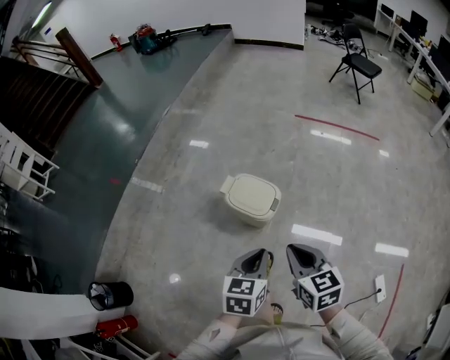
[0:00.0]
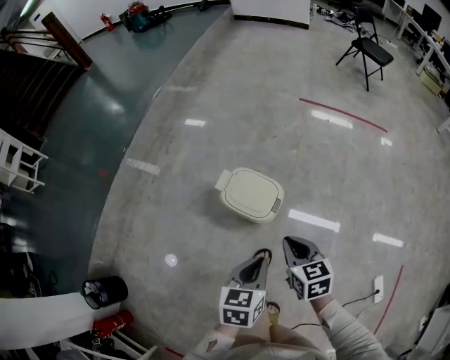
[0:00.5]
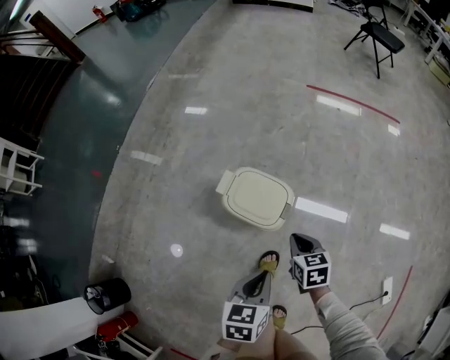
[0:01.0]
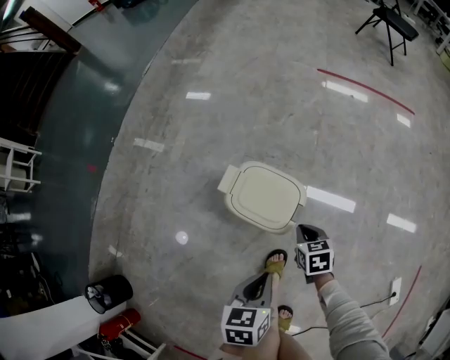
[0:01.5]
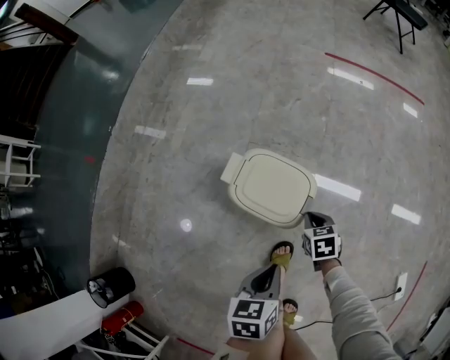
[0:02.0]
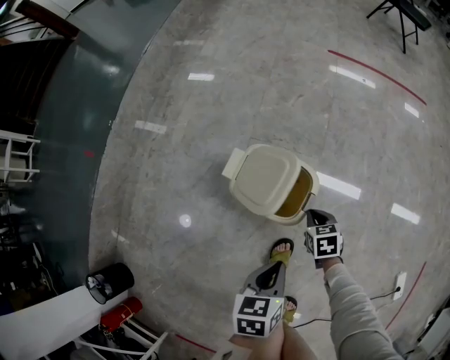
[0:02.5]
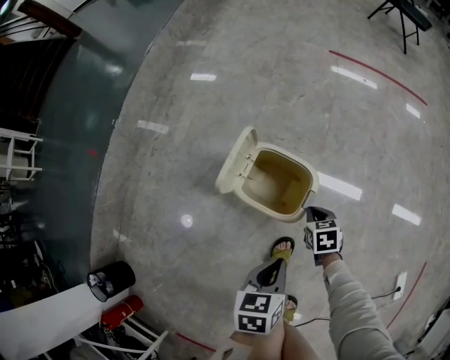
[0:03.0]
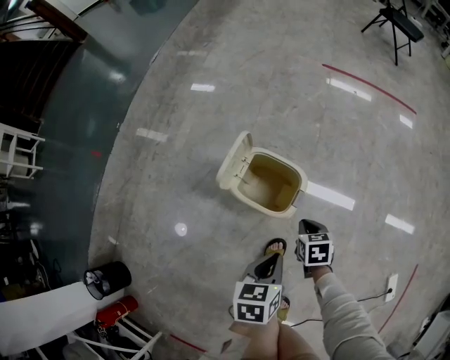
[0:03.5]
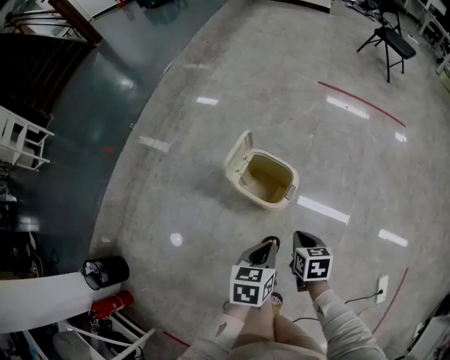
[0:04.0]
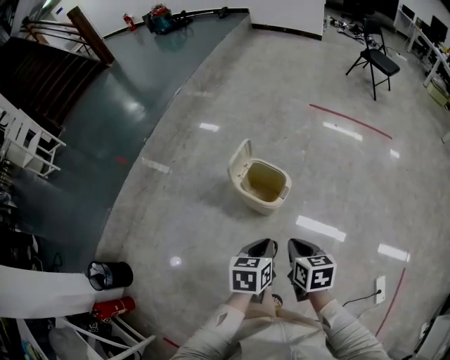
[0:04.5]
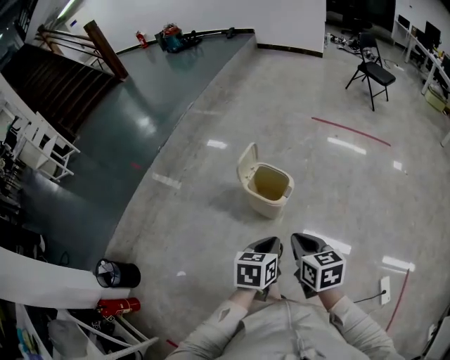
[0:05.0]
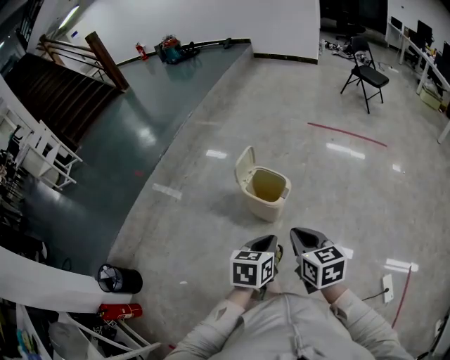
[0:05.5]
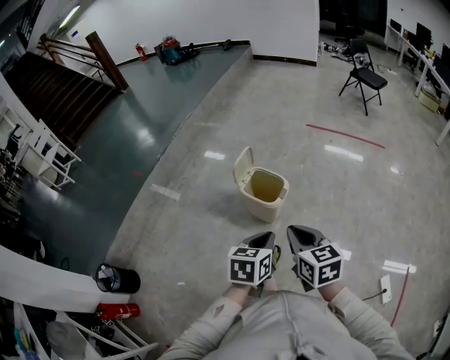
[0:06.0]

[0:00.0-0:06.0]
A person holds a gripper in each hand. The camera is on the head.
0:00.0 to 0:02.0: The left gripper moves downward and forward, approximately 25 cm, and rotates about 20 degrees. The right gripper heads downward and forward, covering about 50 cm, and tips its fingers downward by approximately 30 degrees.
0:02.0 to 0:04.0: The left gripper shifts some 10 cm upward; the right gripper travels upward and backward by some 20 cm.
0:04.0 to 0:06.0: The grippers both shift upward and backward by roughly 25 cm. The right gripper swivels about 30 degrees.

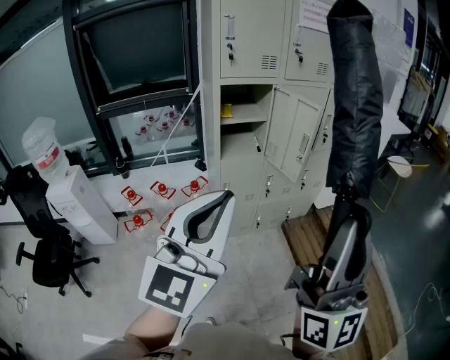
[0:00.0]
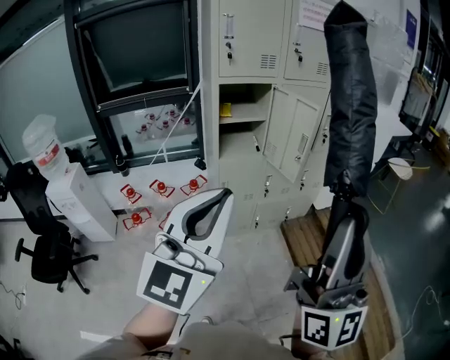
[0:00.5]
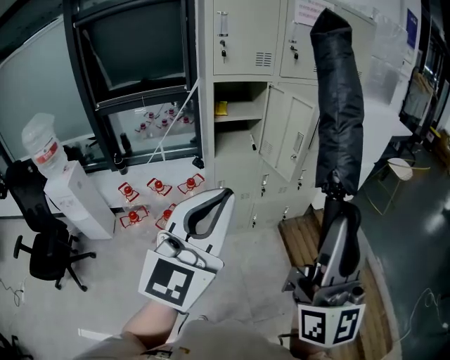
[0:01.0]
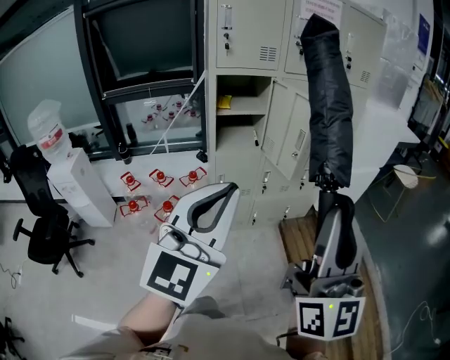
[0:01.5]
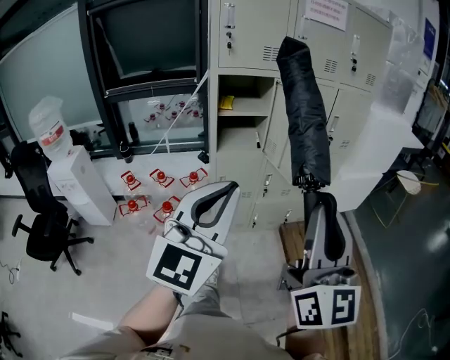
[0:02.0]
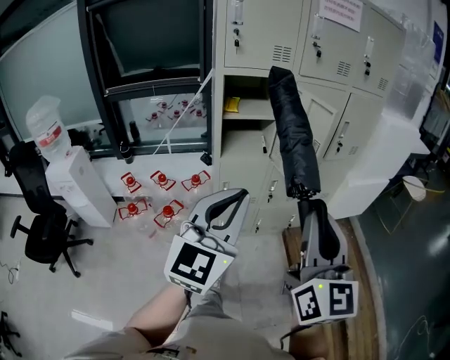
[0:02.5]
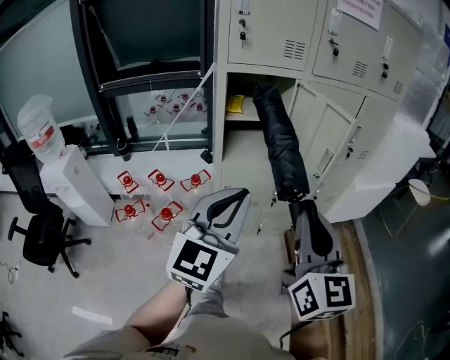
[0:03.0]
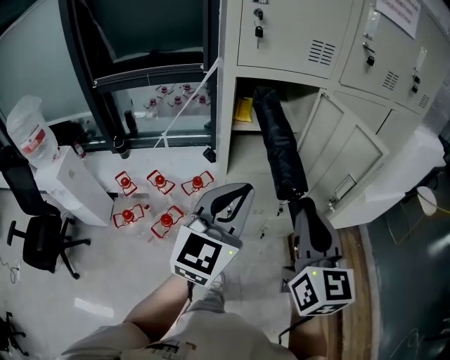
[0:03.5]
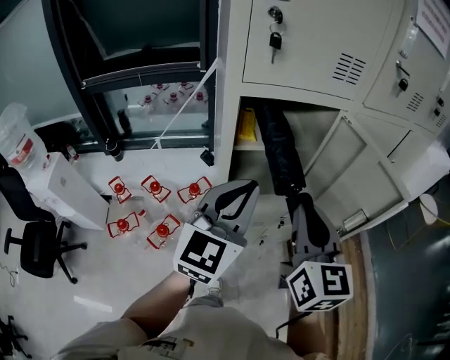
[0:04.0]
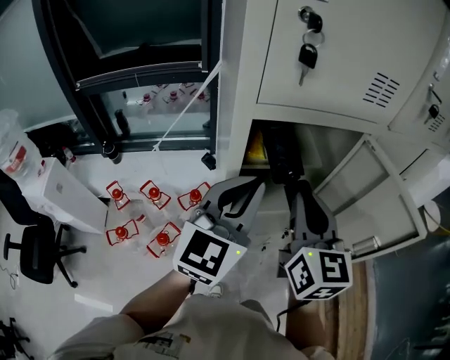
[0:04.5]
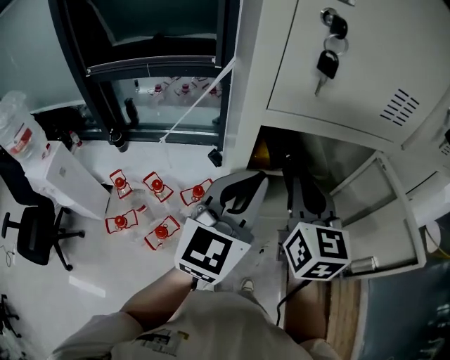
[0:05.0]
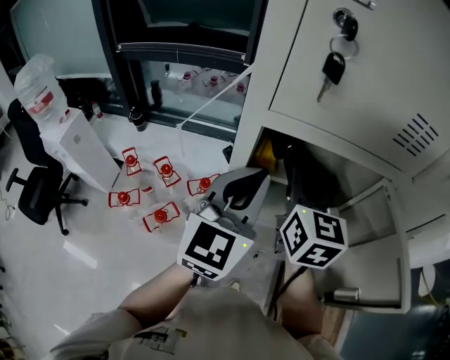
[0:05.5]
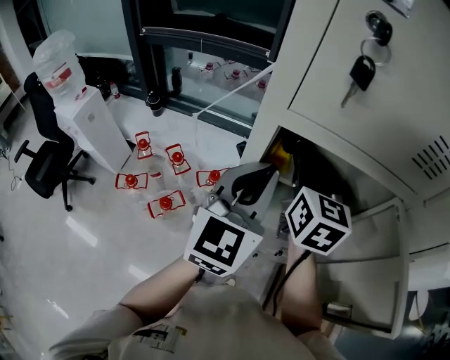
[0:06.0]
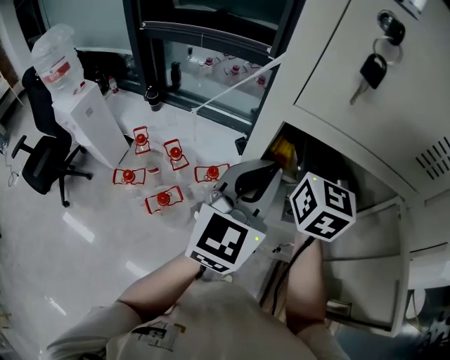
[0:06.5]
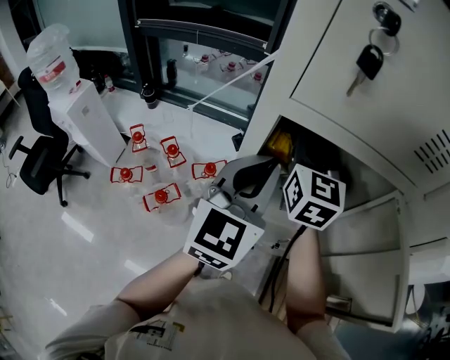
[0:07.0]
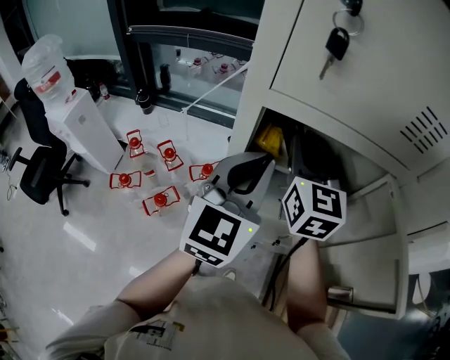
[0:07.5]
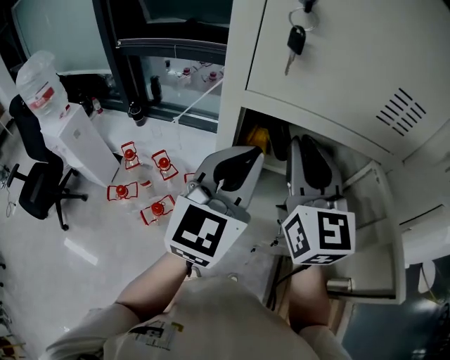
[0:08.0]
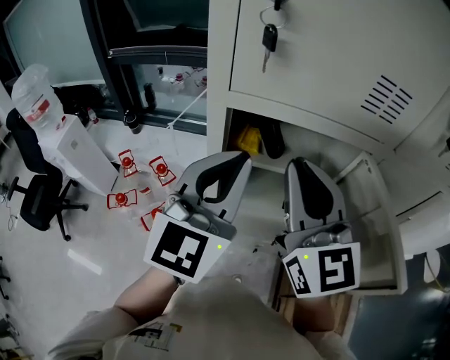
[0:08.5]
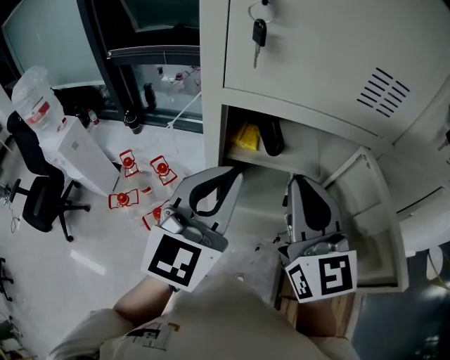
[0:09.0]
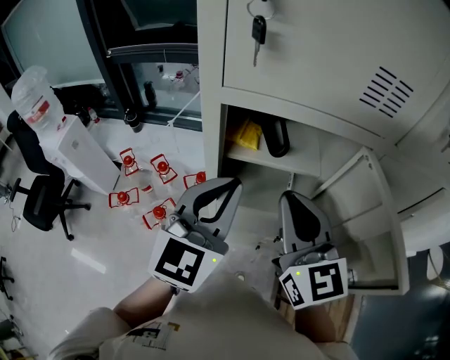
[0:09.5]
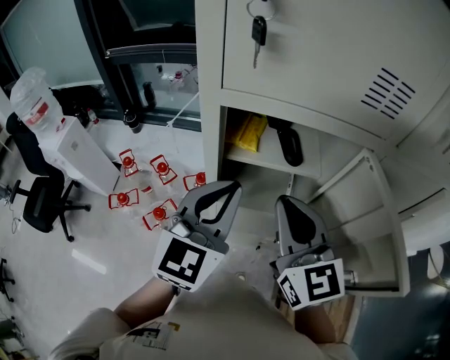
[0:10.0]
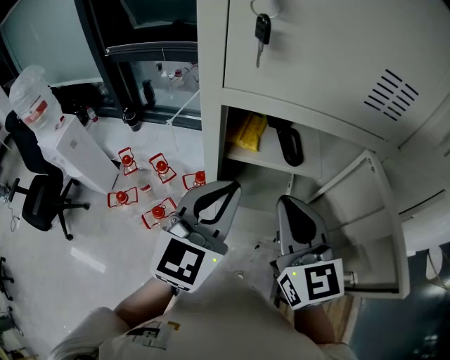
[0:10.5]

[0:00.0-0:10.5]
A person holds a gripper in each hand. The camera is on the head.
0:00.0 to 0:02.0: The right gripper shifts about 15 cm forward and downward, and turns by some 20 degrees, while the left gripper moves to the right and forward, about 10 cm.
0:02.0 to 0:04.0: The pair of grippers is taken forward, roughly 40 cm. The right gripper rotates about 30 degrees.
0:04.0 to 0:06.5: The right gripper shifts roughly 25 cm forward, while the left gripper moves forward, roughly 15 cm, and changes its angle by roughly 20 degrees.
0:06.5 to 0:08.5: The right gripper shifts roughly 15 cm backward and upward. The left gripper goes some 10 cm upward and backward.
0:08.5 to 0:10.5: The two grippers go roughly 10 cm downward.

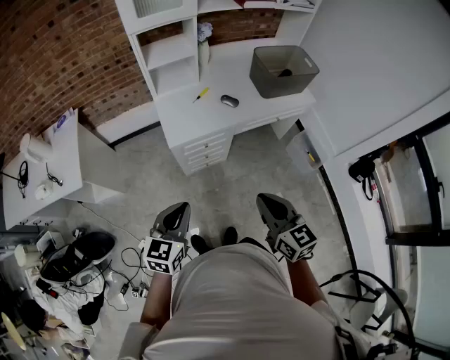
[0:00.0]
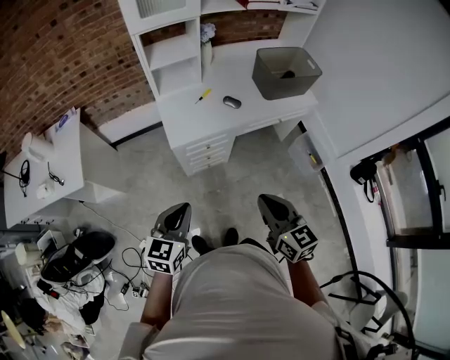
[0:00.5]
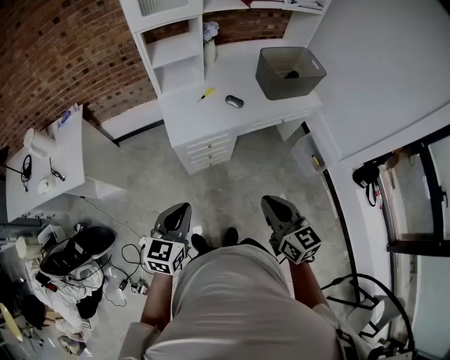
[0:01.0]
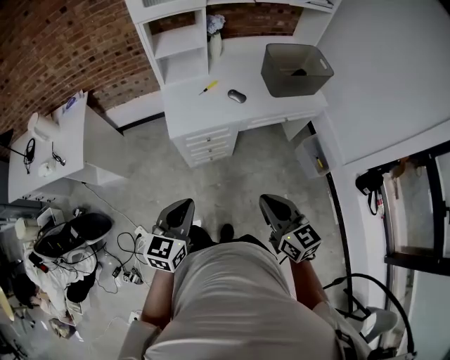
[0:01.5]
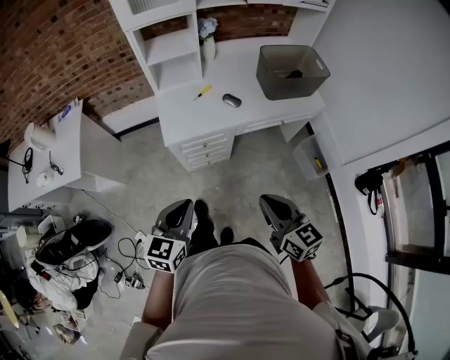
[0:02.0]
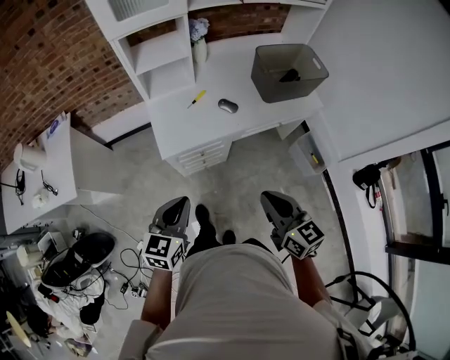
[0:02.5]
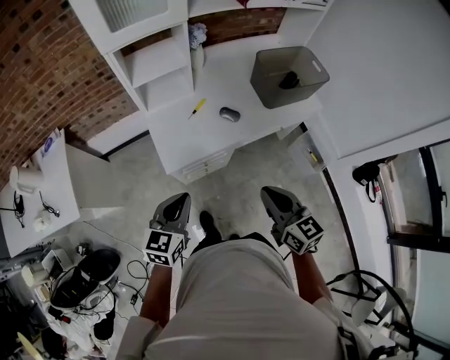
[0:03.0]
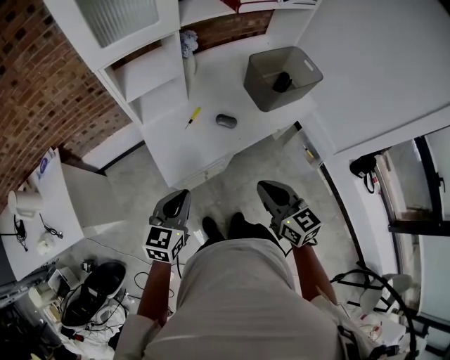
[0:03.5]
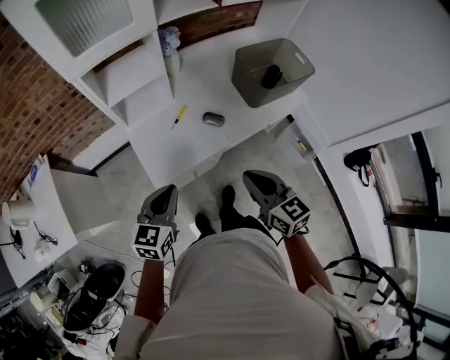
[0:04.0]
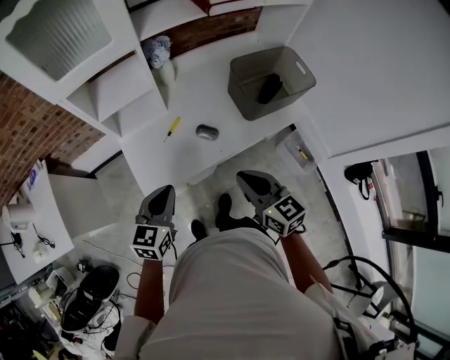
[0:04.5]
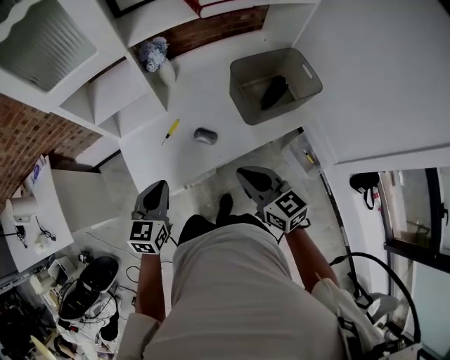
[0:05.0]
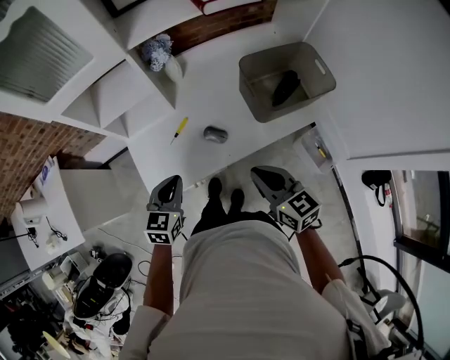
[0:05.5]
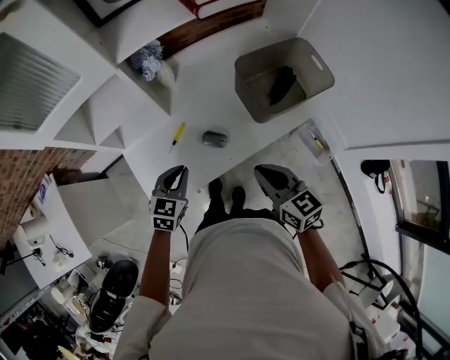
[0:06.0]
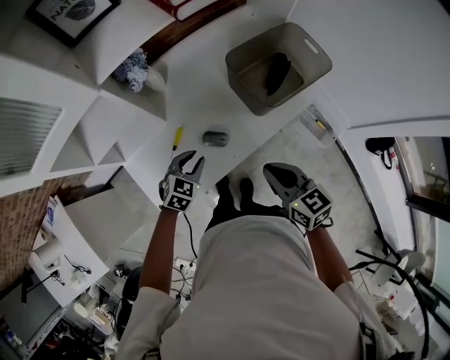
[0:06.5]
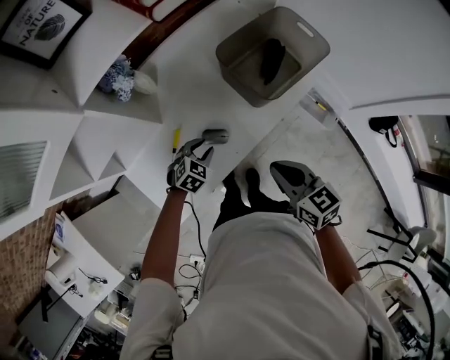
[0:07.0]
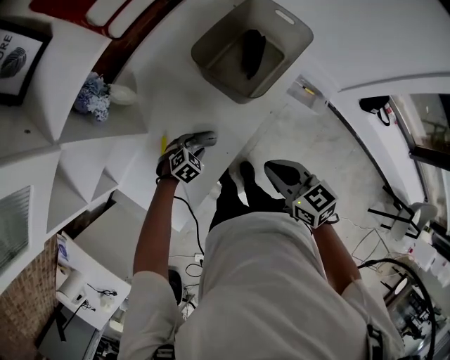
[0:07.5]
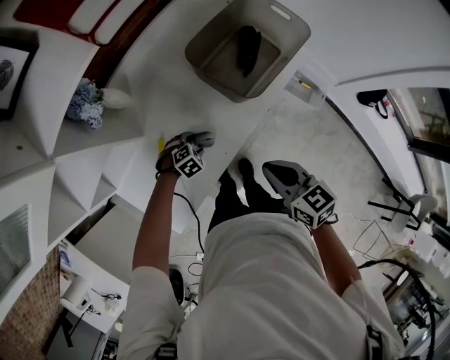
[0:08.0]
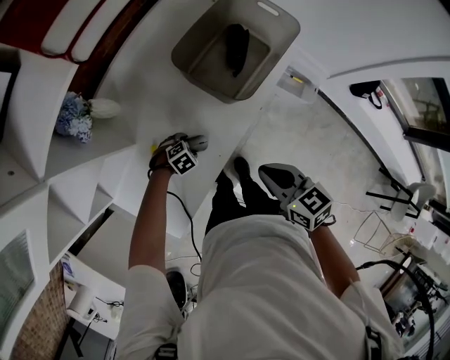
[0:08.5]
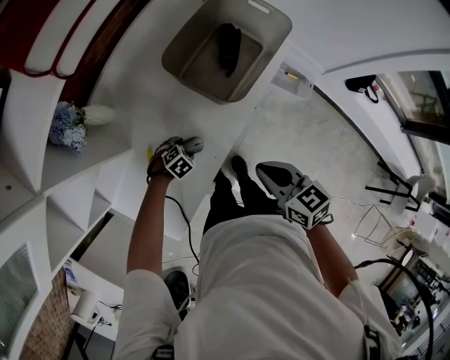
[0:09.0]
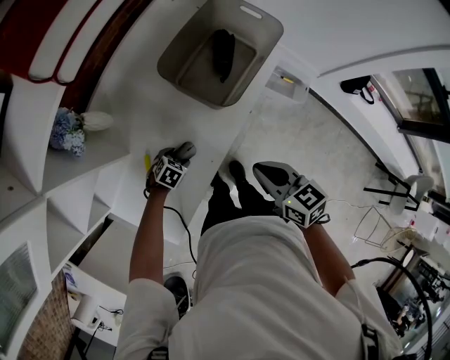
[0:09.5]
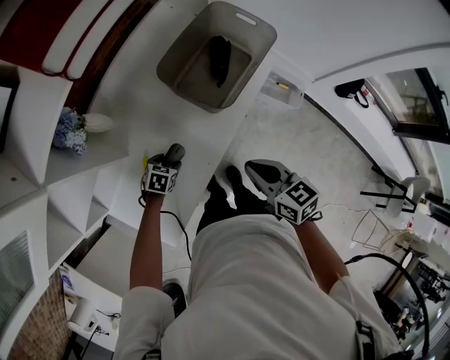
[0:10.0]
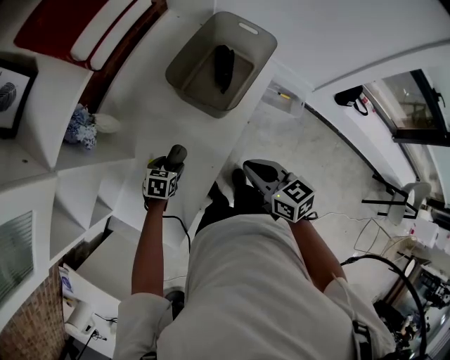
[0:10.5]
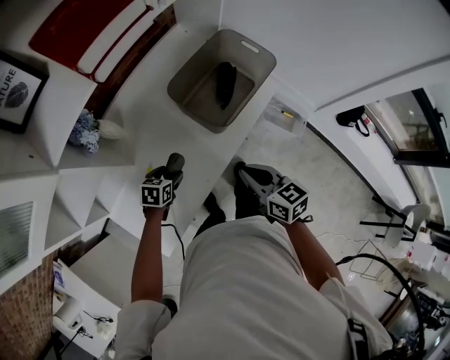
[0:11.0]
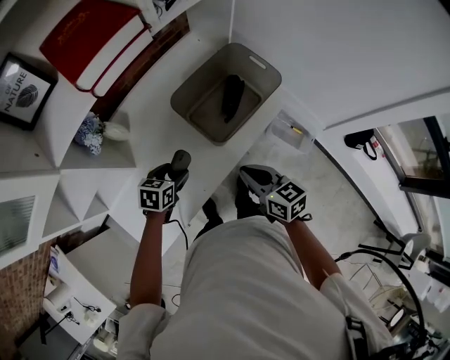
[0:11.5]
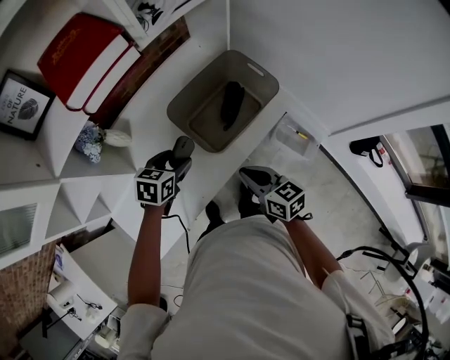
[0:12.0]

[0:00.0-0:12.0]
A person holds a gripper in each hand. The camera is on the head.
0:00.0 to 0:02.0: Both grippers travel together to the right, some 10 cm.
0:02.0 to 0:04.0: Both grippers move forward, some 25 cm.
0:04.0 to 0:06.0: The right gripper shifts approximately 20 cm forward and to the right. The left gripper is displaced forward, to the right and downward by about 25 cm.
0:06.0 to 0:08.0: The left gripper is displaced downward by roughly 25 cm, angles its fingers downward, by approximately 30 degrees, and opens. The right gripper heads downward, covering about 5 cm, and swivels approximately 20 degrees.
0:08.0 to 0:10.0: The left gripper turns by approximately 30 degrees.
0:10.0 to 0:12.0: The left gripper travels upward, to the right and forward by approximately 25 cm, and changes its angle by approximately 20 degrees. Meanwhile the right gripper is displaced forward and to the right by roughly 10 cm.
